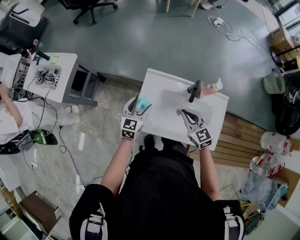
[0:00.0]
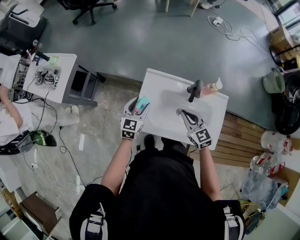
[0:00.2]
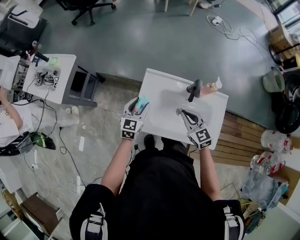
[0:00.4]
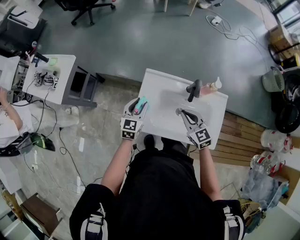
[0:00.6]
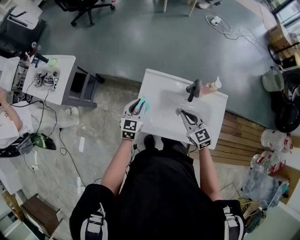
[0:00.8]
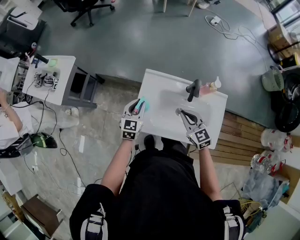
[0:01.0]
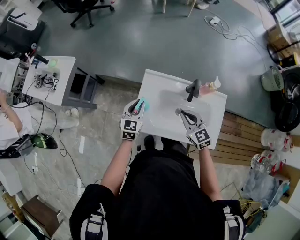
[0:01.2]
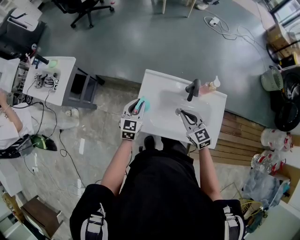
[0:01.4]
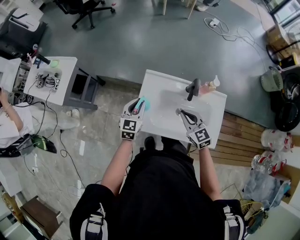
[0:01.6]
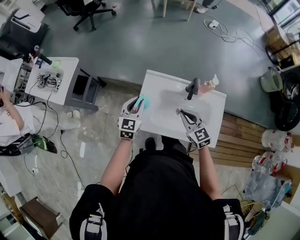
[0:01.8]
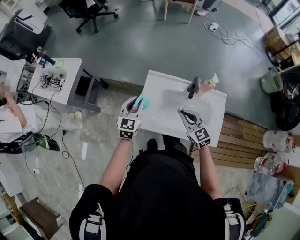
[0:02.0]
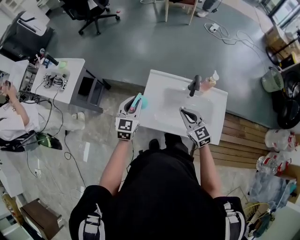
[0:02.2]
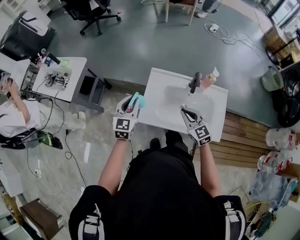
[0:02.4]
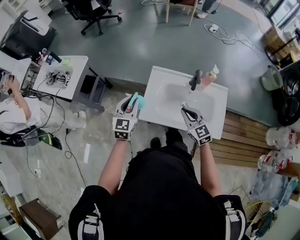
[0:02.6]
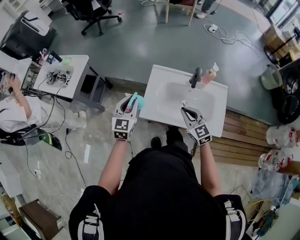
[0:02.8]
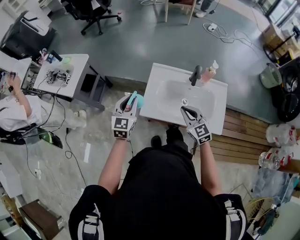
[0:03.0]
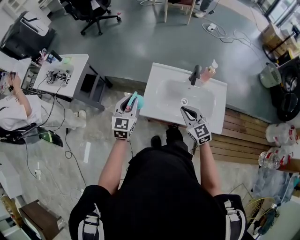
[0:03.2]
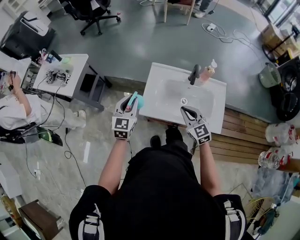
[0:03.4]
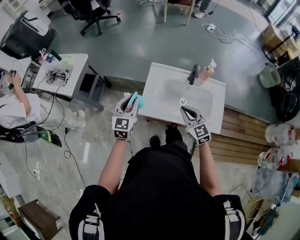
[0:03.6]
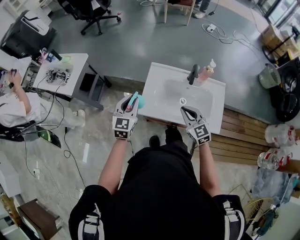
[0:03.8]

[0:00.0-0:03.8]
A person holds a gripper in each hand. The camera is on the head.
0:00.0 to 0:01.2: The left gripper closes its fingers.
0:01.2 to 0:02.6: The left gripper moves backward, upward and to the left, about 20 cm; the right gripper is displaced backward by approximately 10 cm.
0:02.6 to 0:03.8: The grippers both shift backward by roughly 5 cm.

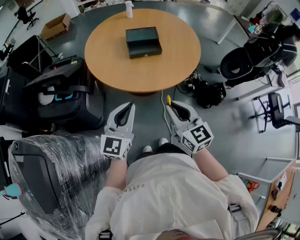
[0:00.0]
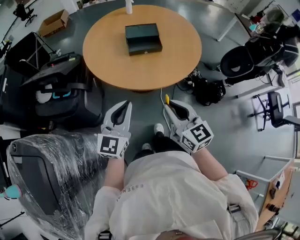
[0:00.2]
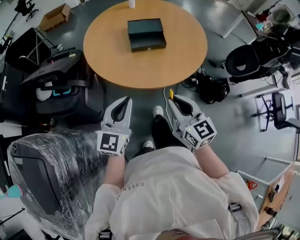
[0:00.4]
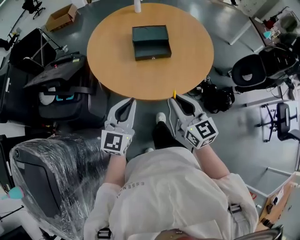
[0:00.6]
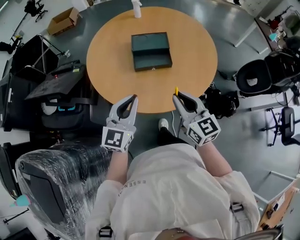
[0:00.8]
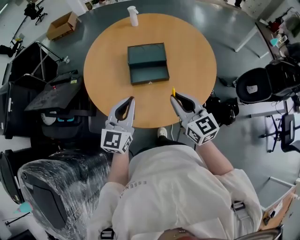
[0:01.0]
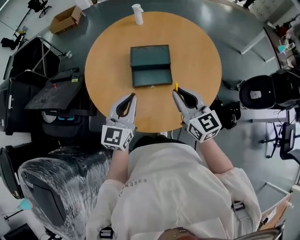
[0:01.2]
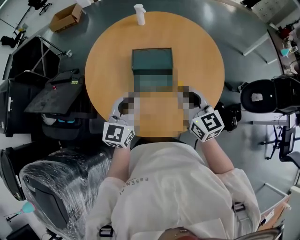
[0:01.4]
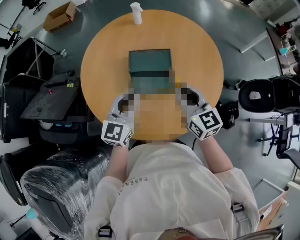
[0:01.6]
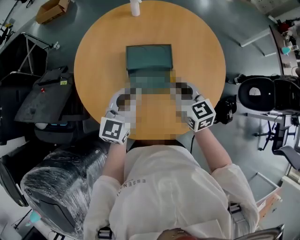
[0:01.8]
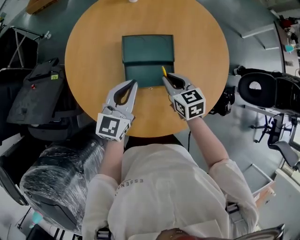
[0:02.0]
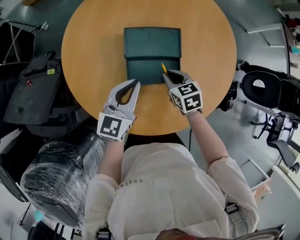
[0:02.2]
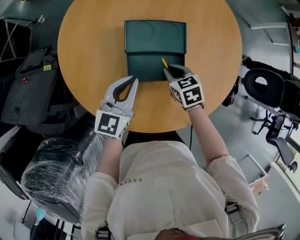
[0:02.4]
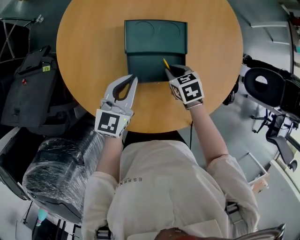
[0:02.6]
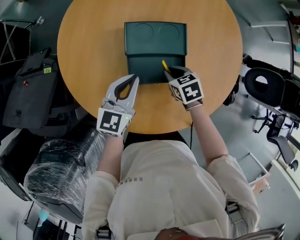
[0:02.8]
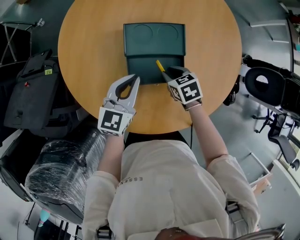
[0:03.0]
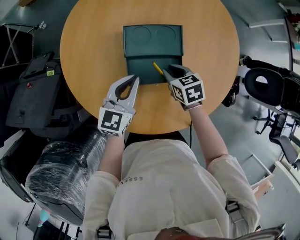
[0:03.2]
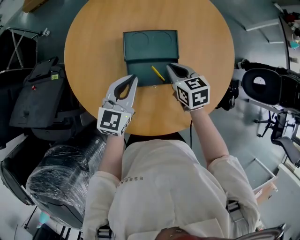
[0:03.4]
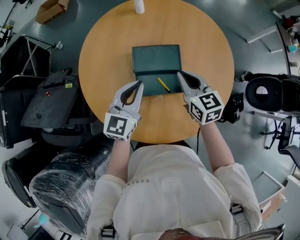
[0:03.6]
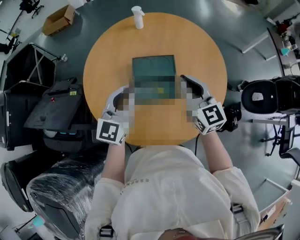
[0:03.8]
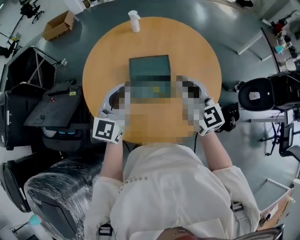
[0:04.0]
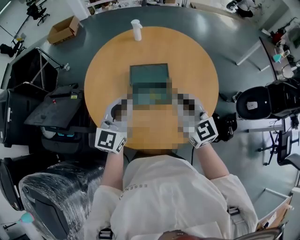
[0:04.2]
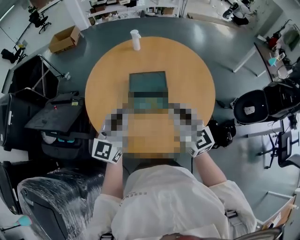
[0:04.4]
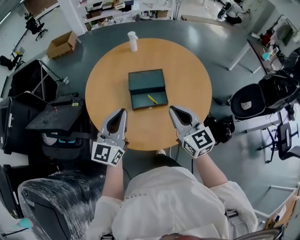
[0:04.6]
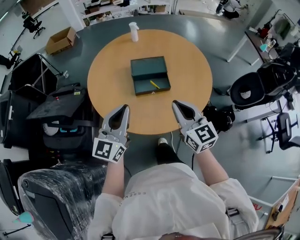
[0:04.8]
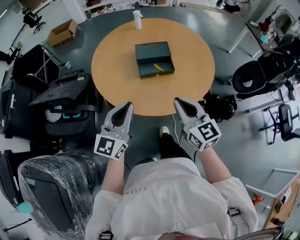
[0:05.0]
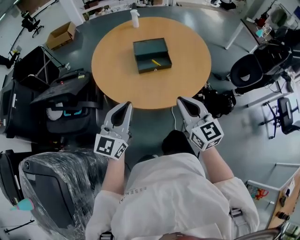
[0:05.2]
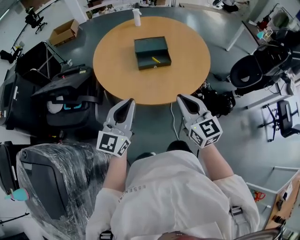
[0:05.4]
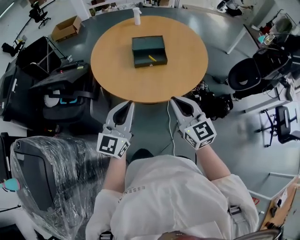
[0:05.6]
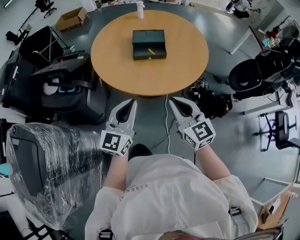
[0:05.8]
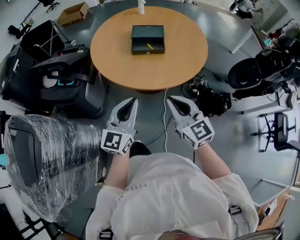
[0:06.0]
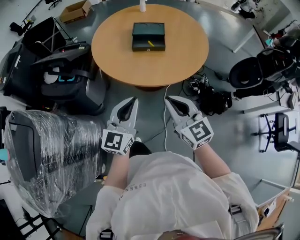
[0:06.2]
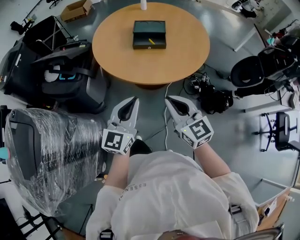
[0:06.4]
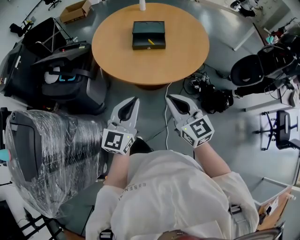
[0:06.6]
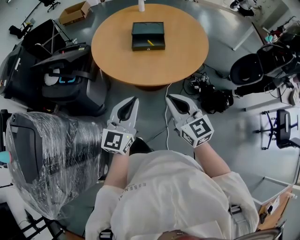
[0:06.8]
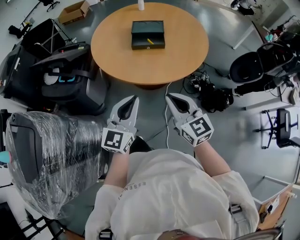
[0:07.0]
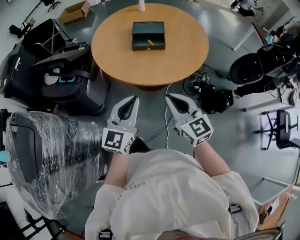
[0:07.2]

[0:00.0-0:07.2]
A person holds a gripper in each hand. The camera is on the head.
0:00.0 to 0:01.4: Both grippers travel together forward, roughly 35 cm.
0:01.4 to 0:02.8: The right gripper travels downward and forward by about 30 cm, and tips its fingers downward by approximately 50 degrees. Meanwhile the left gripper moves downward and forward, about 15 cm.
0:02.8 to 0:04.4: The right gripper goes about 30 cm upward, and tilts its fingers approximately 60 degrees upward. The left gripper moves upward and backward, approximately 25 cm, and swivels about 30 degrees.
0:04.4 to 0:05.8: The two grippers go some 30 cm backward.
0:05.8 to 0:07.2: The left gripper changes place by approximately 5 cm.

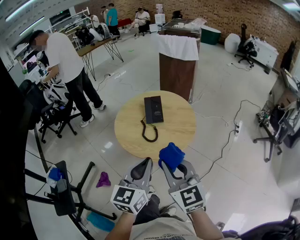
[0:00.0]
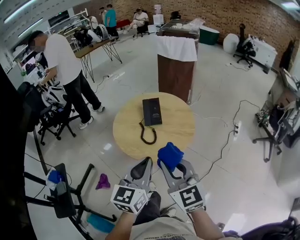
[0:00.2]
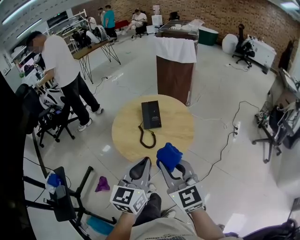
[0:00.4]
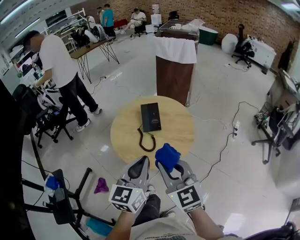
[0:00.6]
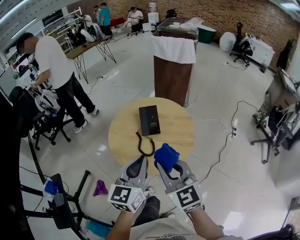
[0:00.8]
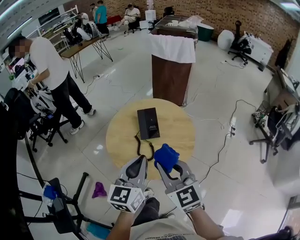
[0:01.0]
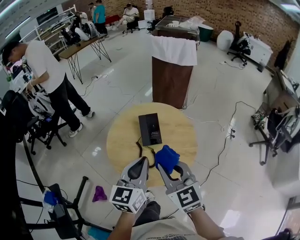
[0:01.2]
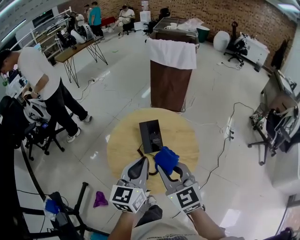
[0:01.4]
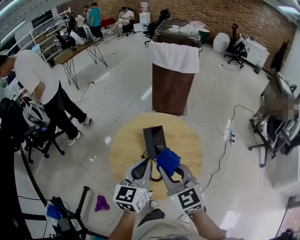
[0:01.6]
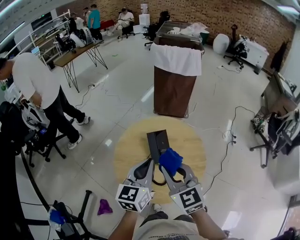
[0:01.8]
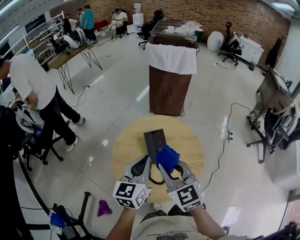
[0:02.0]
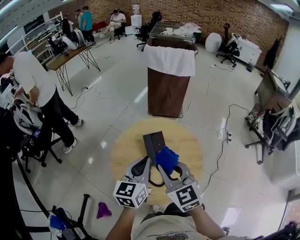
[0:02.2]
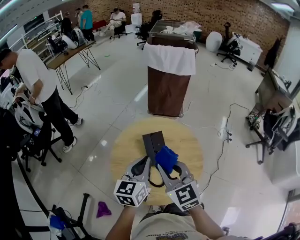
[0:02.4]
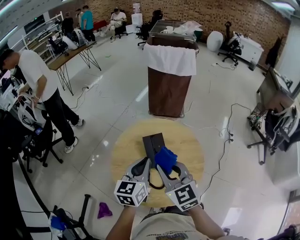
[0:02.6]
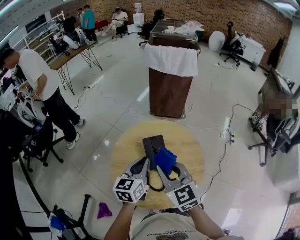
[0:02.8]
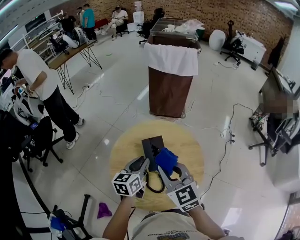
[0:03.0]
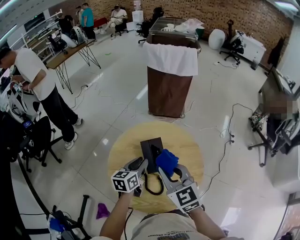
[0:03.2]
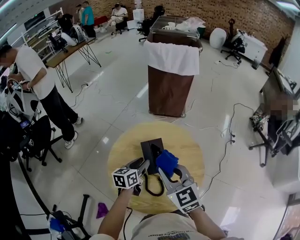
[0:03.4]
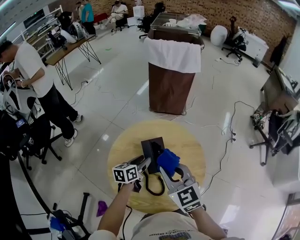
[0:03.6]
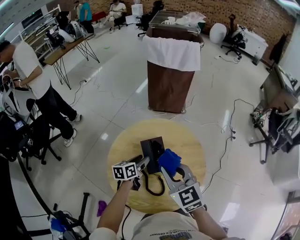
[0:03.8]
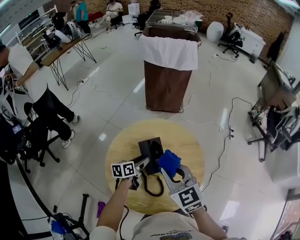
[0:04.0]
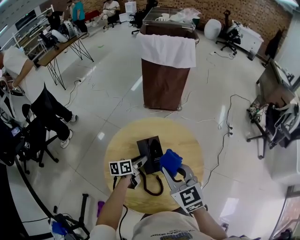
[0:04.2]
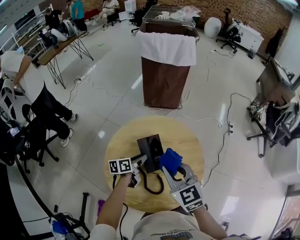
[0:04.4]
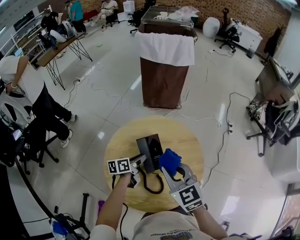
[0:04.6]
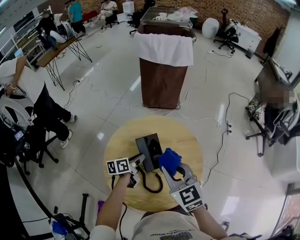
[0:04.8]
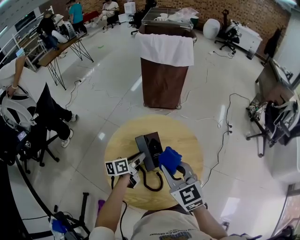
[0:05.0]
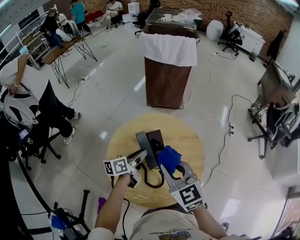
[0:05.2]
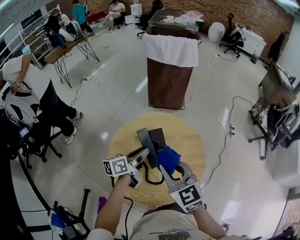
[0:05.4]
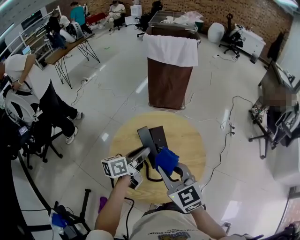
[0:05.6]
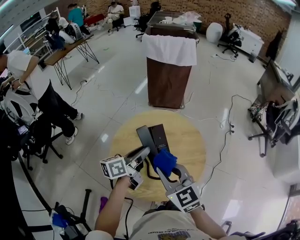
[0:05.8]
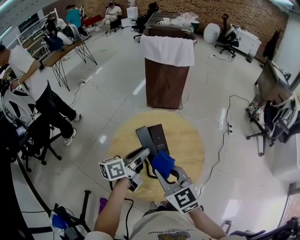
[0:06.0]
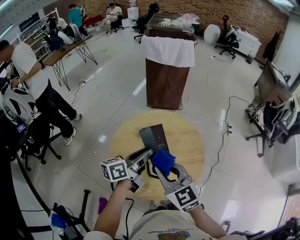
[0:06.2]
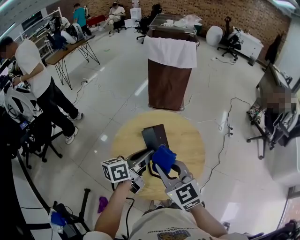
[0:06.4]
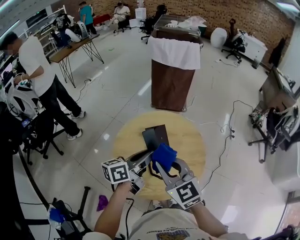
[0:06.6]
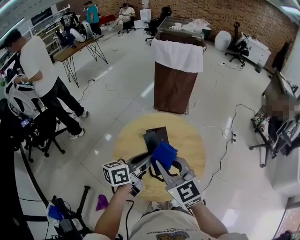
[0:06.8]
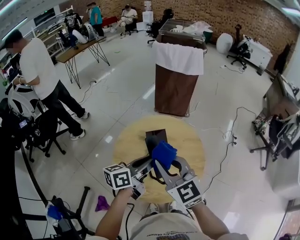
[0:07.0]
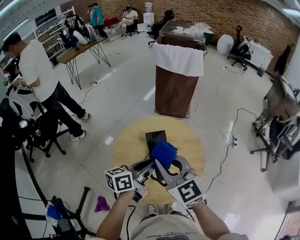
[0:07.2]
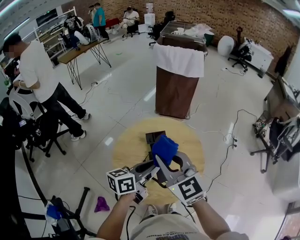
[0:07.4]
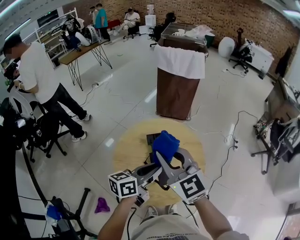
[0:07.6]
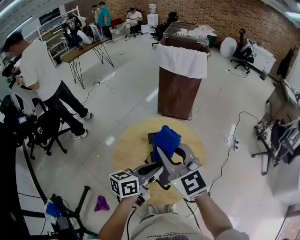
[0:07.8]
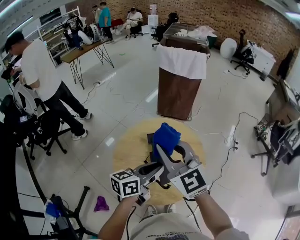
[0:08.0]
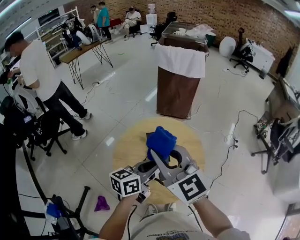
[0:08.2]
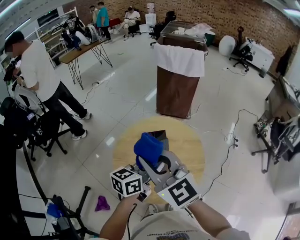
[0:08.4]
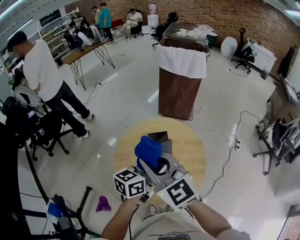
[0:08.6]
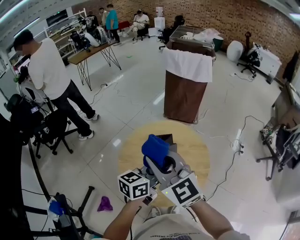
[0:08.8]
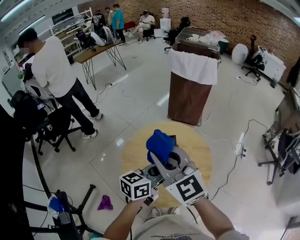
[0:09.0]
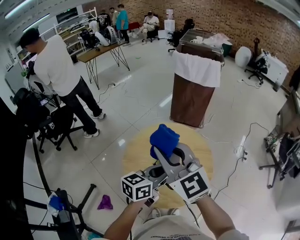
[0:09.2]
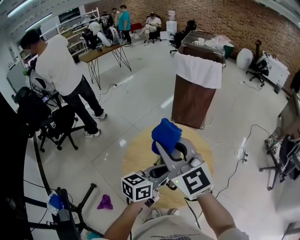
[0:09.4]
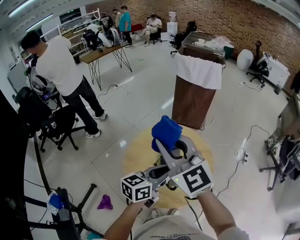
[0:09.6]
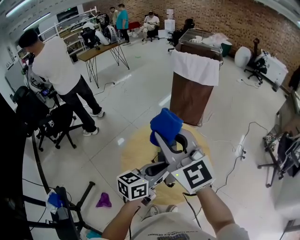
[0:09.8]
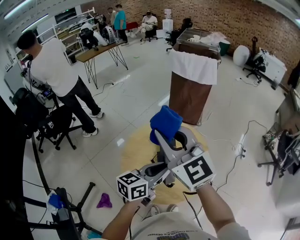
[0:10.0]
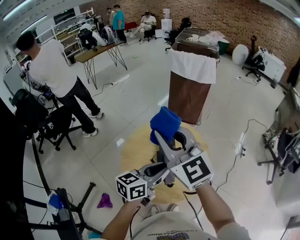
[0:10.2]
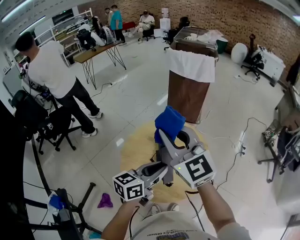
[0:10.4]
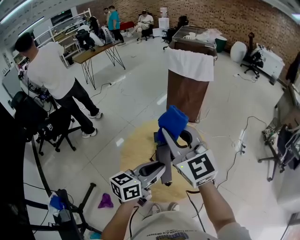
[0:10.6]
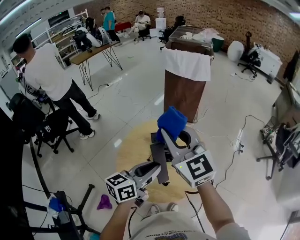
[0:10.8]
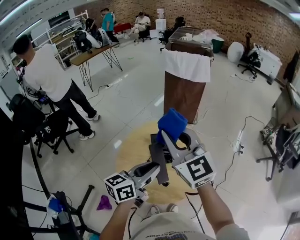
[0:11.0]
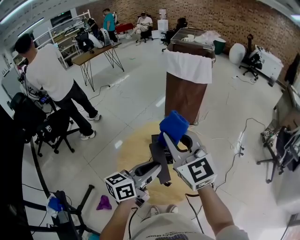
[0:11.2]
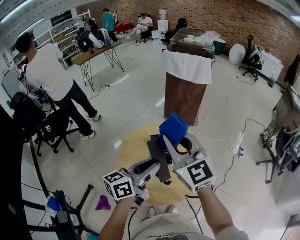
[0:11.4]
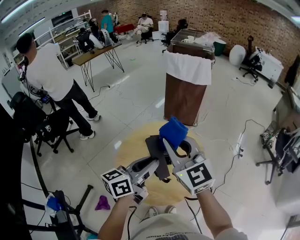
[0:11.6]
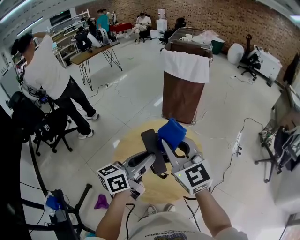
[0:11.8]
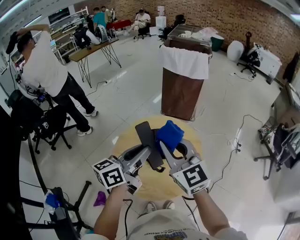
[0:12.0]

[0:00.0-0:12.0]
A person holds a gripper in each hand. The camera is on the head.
0:00.0 to 0:01.6: Both grippers travel together forward, some 25 cm.
0:01.6 to 0:03.0: The left gripper goes roughly 15 cm forward and downward, while the right gripper heads forward, covering approximately 10 cm.
0:03.0 to 0:04.4: The left gripper shifts roughly 15 cm downward, changes its angle by approximately 30 degrees, and opens, then closes once more. Meanwhile the right gripper shifts by approximately 5 cm.
0:04.4 to 0:06.0: The right gripper shifts roughly 10 cm backward. The left gripper shifts roughly 20 cm upward and backward, and turns by some 20 degrees.
0:06.0 to 0:07.6: The left gripper travels to the right and backward by some 10 cm; the right gripper heads upward, covering some 10 cm.
0:07.6 to 0:09.0: The right gripper shifts by roughly 5 cm.
0:09.0 to 0:10.4: The right gripper changes place by about 5 cm.
0:10.4 to 0:12.0: The left gripper goes approximately 5 cm upward. The right gripper is displaced downward by some 5 cm.
